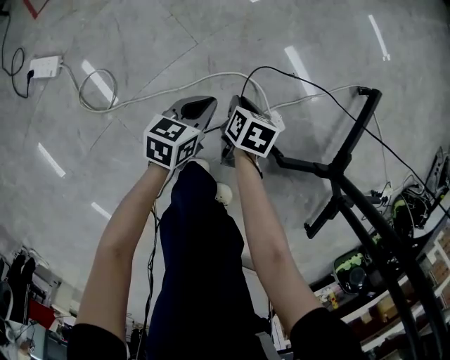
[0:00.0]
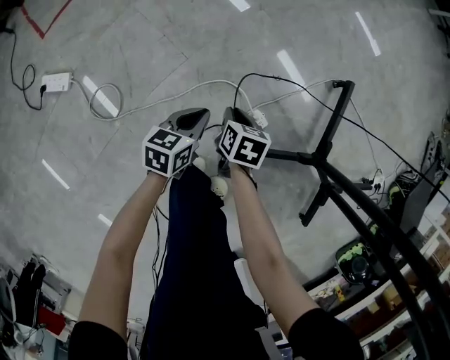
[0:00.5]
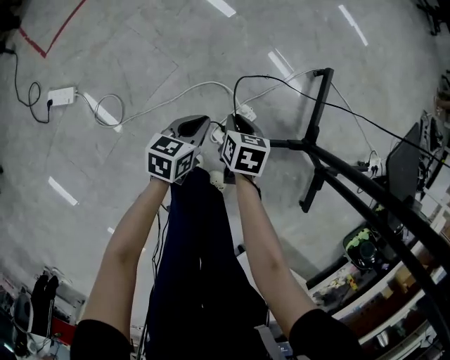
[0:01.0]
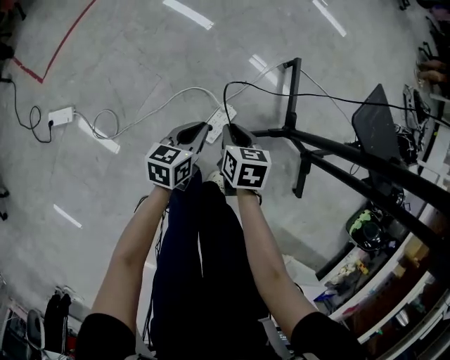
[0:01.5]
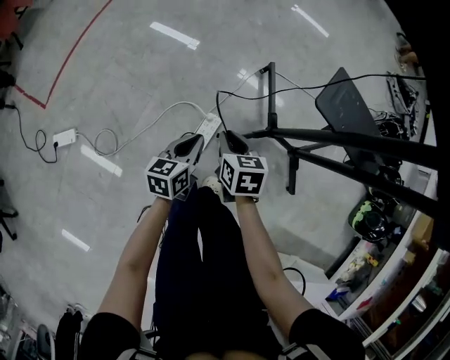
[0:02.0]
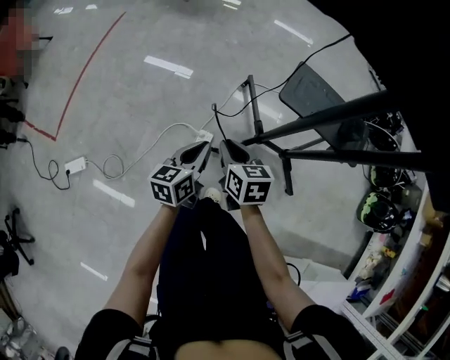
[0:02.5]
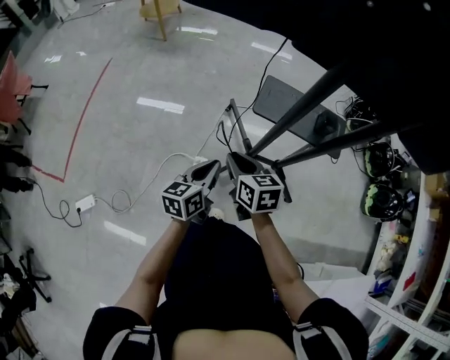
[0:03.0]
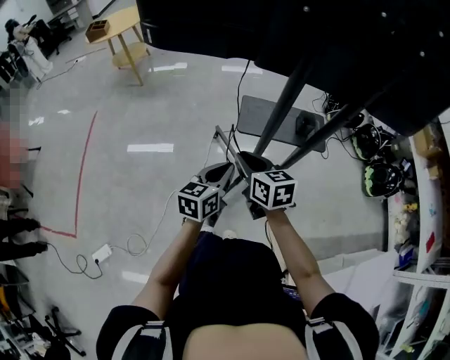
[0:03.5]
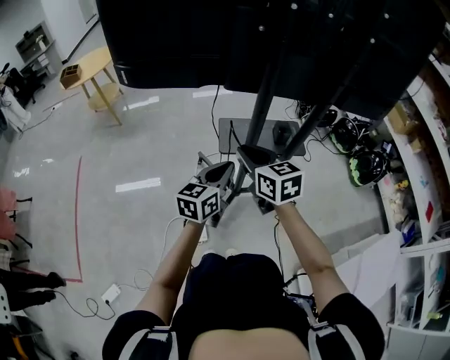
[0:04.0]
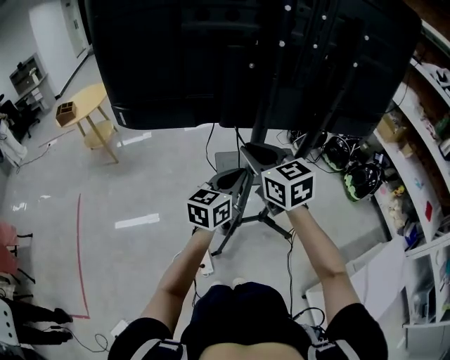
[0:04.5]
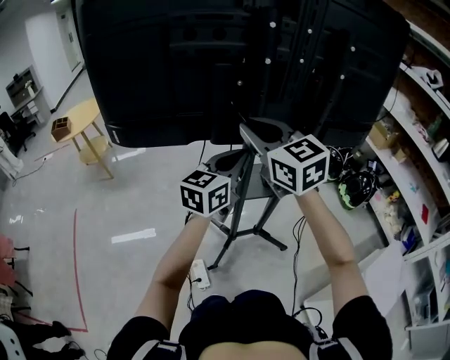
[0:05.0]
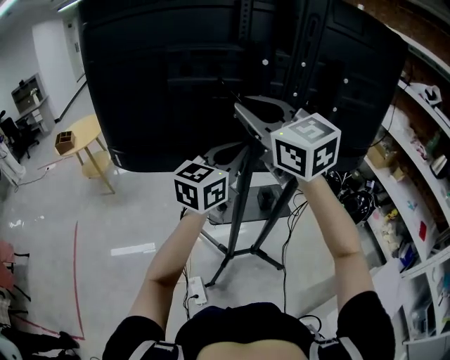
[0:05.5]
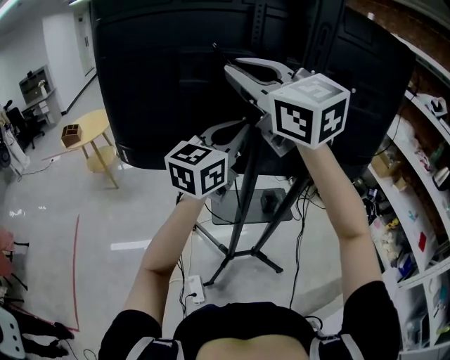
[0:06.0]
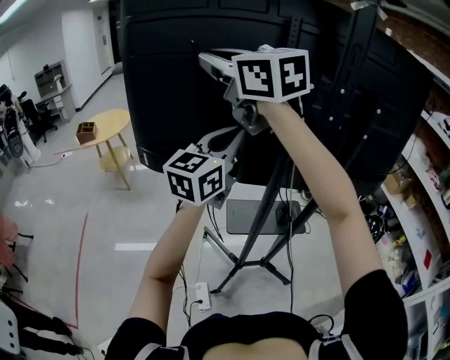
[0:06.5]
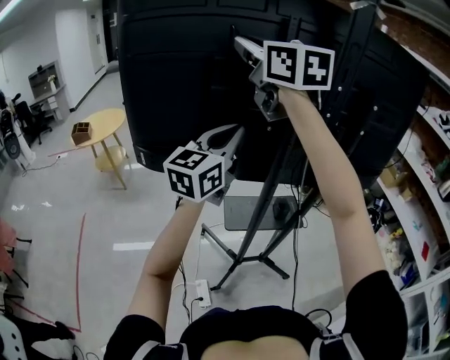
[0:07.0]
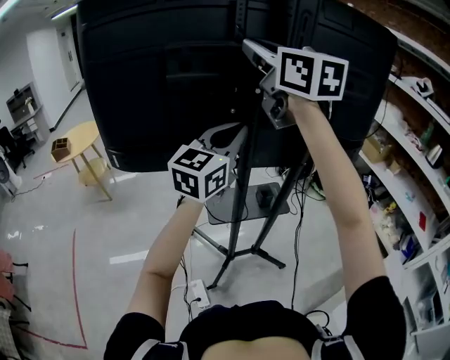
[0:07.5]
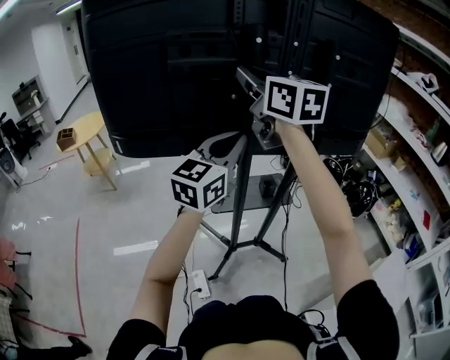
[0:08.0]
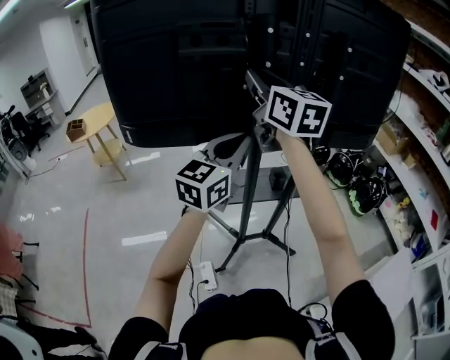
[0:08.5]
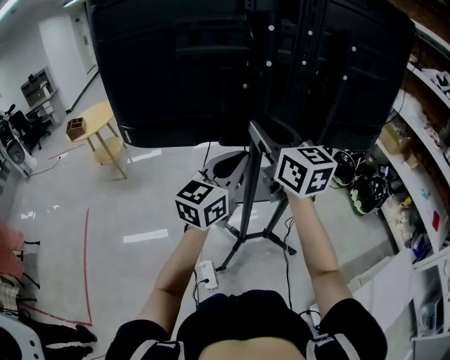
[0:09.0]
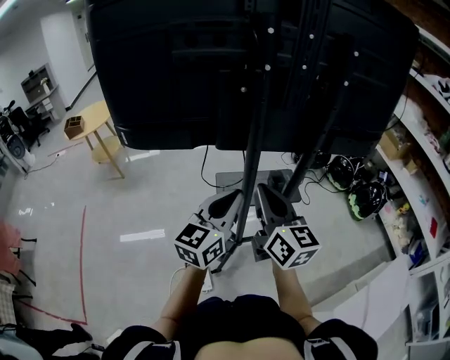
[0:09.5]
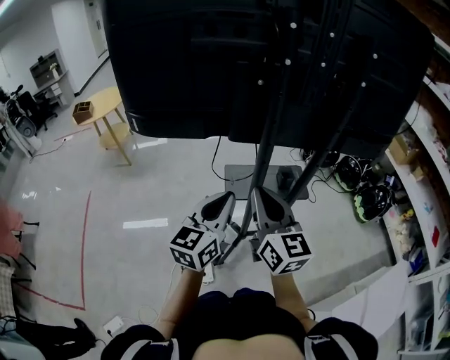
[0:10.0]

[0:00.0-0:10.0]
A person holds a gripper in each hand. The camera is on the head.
0:00.0 to 0:02.0: The left gripper shifts some 40 cm upward and to the right; the right gripper shifts roughly 50 cm upward.
0:02.0 to 0:04.0: The two grippers go approximately 40 cm upward. The right gripper changes its angle by approximately 40 degrees. The left gripper changes its angle by approximately 50 degrees.
0:04.0 to 0:06.0: Both grippers move upward, approximately 40 cm. The right gripper rotates about 40 degrees. Meanwhile the left gripper rotates about 30 degrees.
0:06.0 to 0:08.0: The left gripper moves downward and backward, approximately 10 cm, and moves roughly 10 cm to the left and comes back; the right gripper goes about 10 cm downward, moves approximately 15 cm to the left and comes back, and changes its angle by about 30 degrees.
0:08.0 to 0:10.0: The right gripper moves downward and backward, some 30 cm, and opens, then closes once more, while the left gripper moves downward, backward and to the left, some 20 cm.

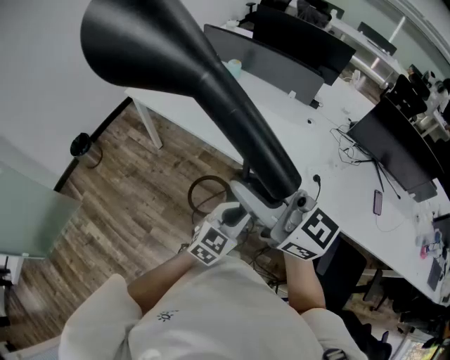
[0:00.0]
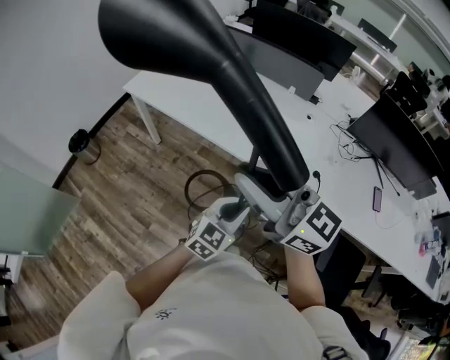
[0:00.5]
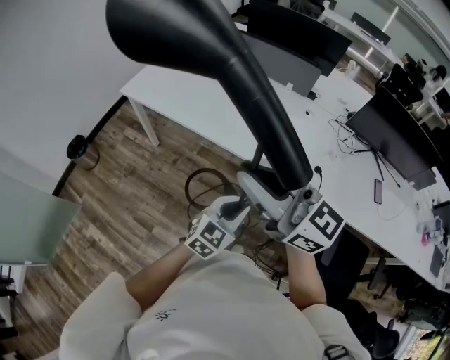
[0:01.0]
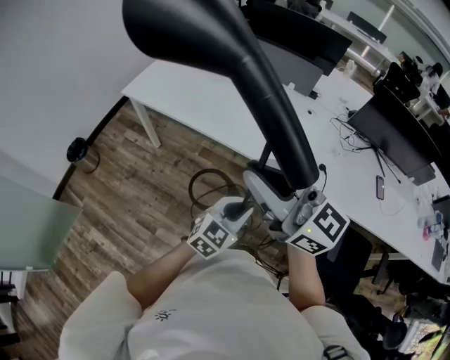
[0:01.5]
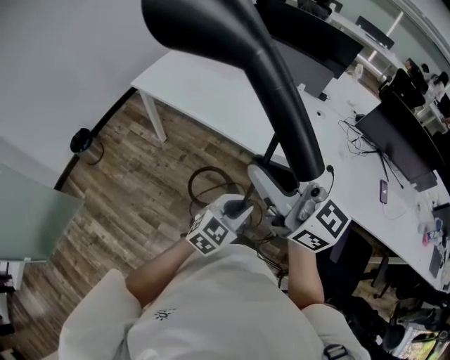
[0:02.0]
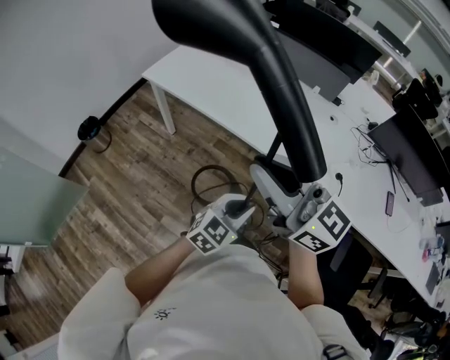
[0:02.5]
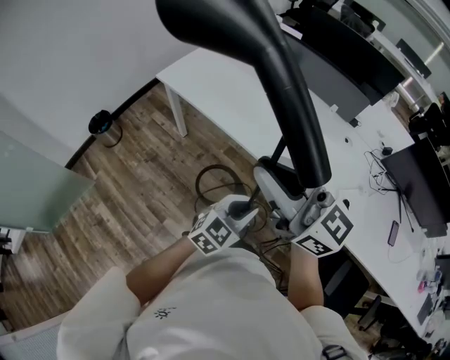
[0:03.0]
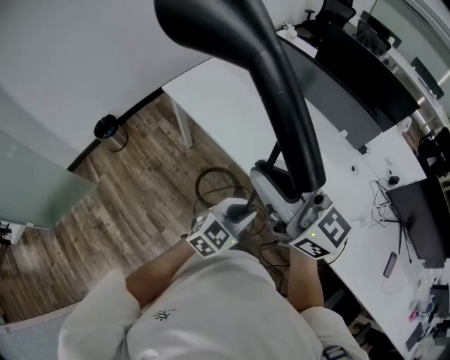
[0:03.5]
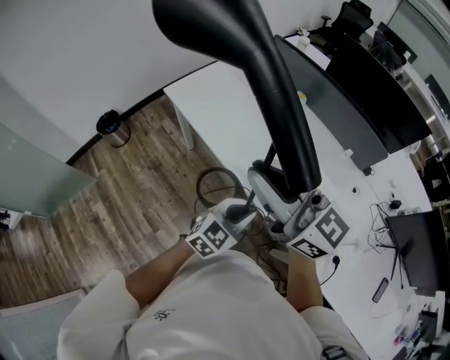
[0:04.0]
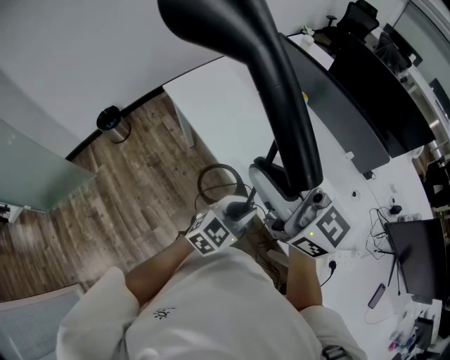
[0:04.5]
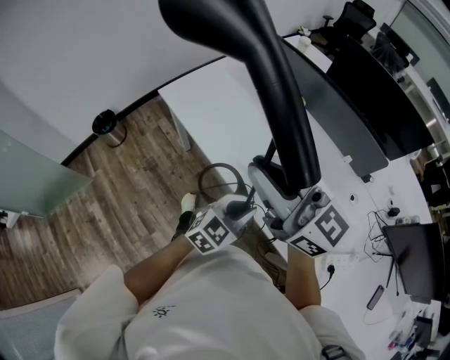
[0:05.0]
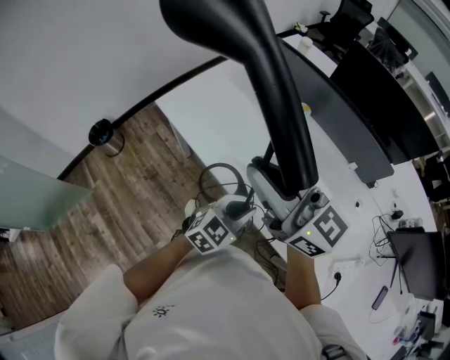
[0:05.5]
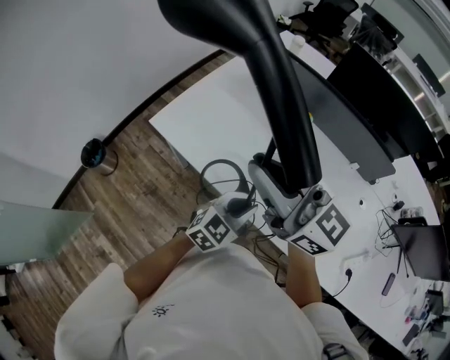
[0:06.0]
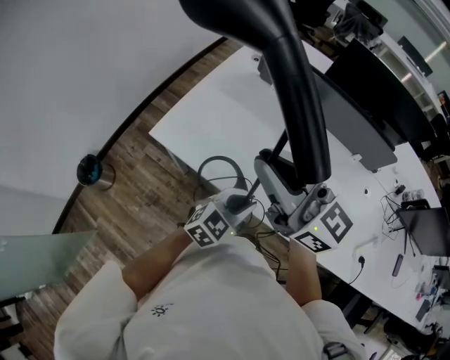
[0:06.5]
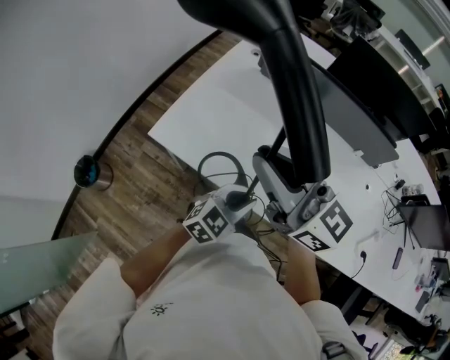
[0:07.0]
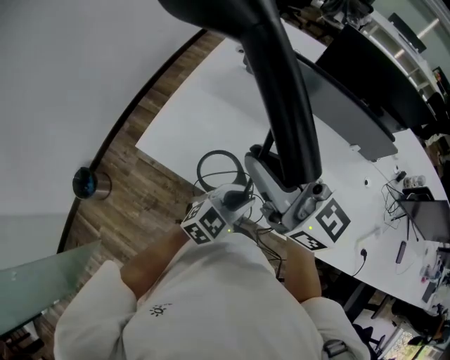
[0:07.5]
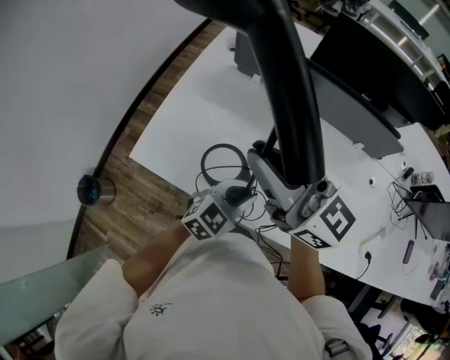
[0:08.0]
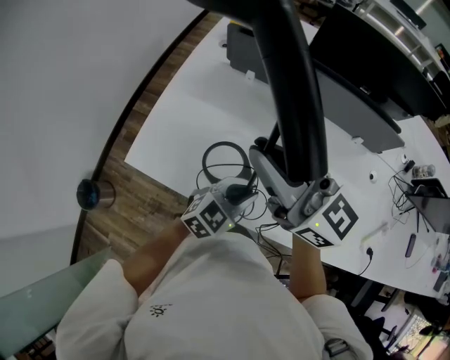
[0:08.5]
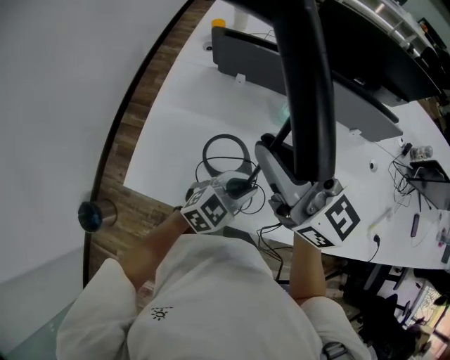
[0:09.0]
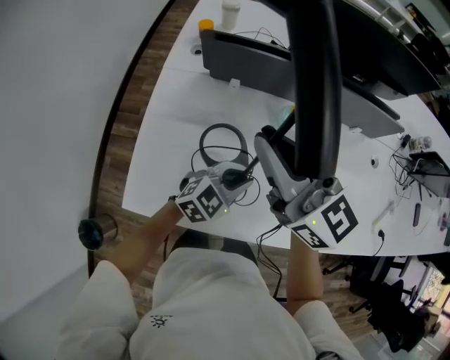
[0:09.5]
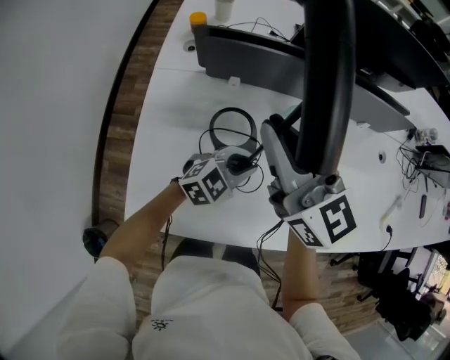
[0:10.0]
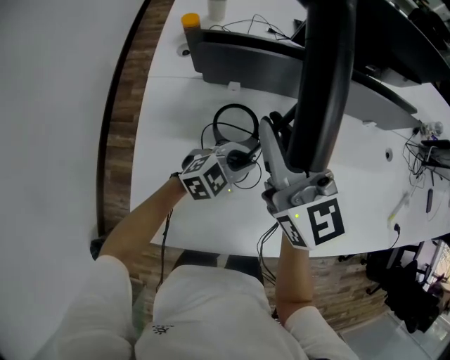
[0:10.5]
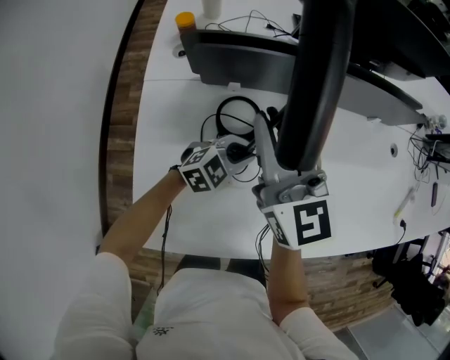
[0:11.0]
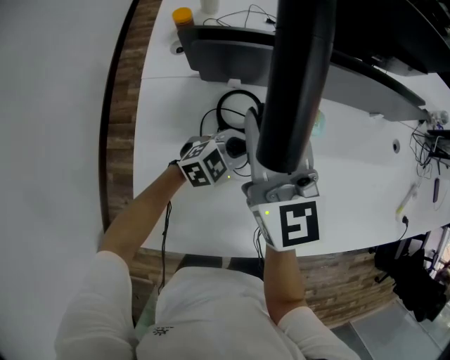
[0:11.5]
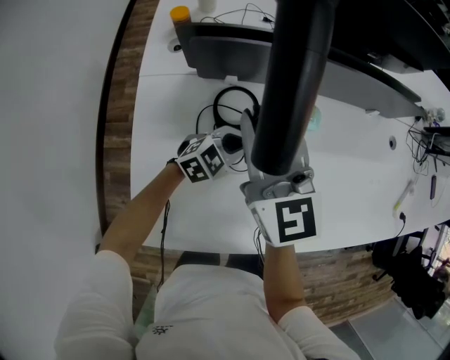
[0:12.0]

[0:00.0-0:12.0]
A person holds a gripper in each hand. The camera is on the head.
0:00.0 to 0:02.0: The two grippers go about 10 cm to the left.
0:02.0 to 0:04.0: Both grippers travel together forward, about 30 cm.
0:04.0 to 0:06.0: The two grippers go roughly 20 cm forward and to the left.
0:06.0 to 0:08.0: The grippers both shift forward by some 15 cm.
0:08.0 to 0:10.0: The right gripper moves roughly 25 cm, and swivels approximately 30 degrees. Meanwhile the left gripper changes place by about 20 cm, and turns by approximately 30 degrees.
0:10.0 to 0:12.0: The left gripper heads downward, to the left and forward, covering some 10 cm; the right gripper travels downward and to the left by approximately 10 cm.

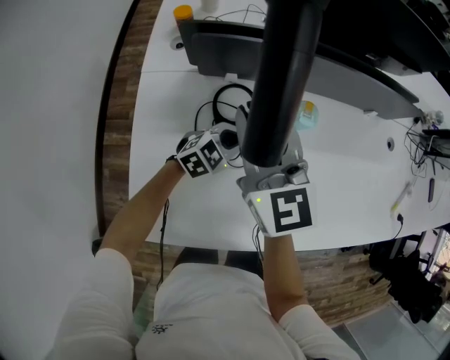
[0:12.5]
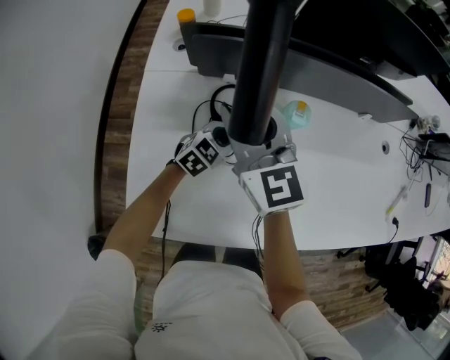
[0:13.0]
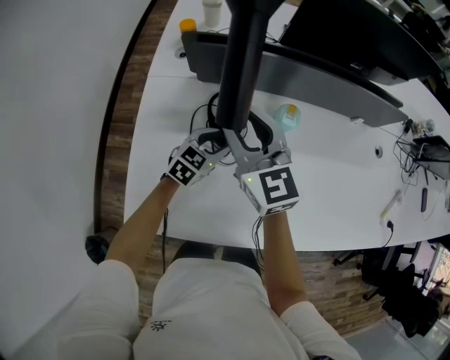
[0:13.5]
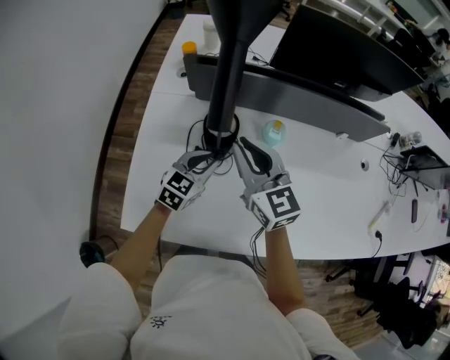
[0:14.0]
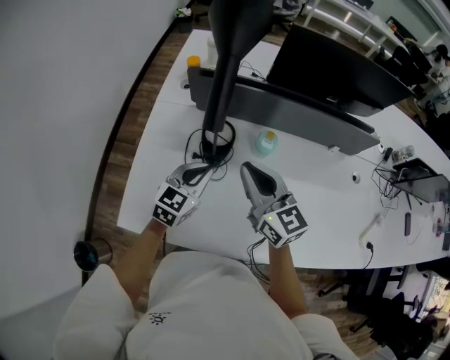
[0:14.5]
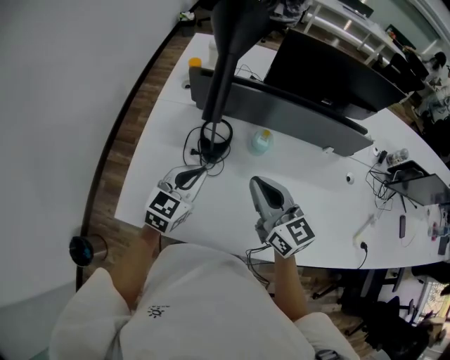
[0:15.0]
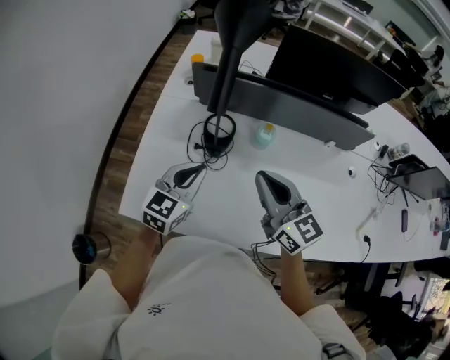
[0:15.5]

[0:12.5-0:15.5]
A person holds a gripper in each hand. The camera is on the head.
0:12.5 to 0:14.0: The right gripper goes about 10 cm to the right and backward, and opens, then closes once more; the left gripper moves upward and backward, about 10 cm, turns by some 30 degrees, and opens, then closes once more.
0:14.0 to 0:15.5: The right gripper goes about 15 cm backward, to the right and upward, while the left gripper is displaced upward and backward by roughly 15 cm.

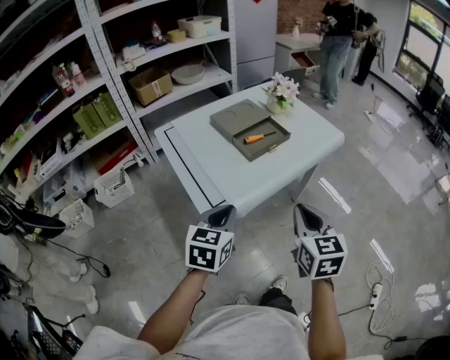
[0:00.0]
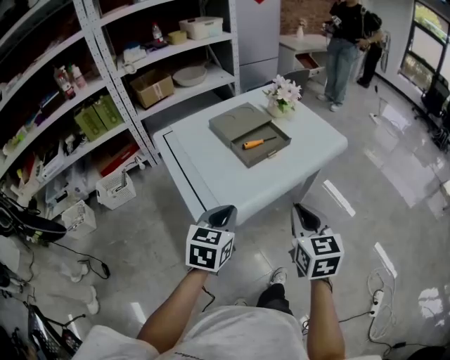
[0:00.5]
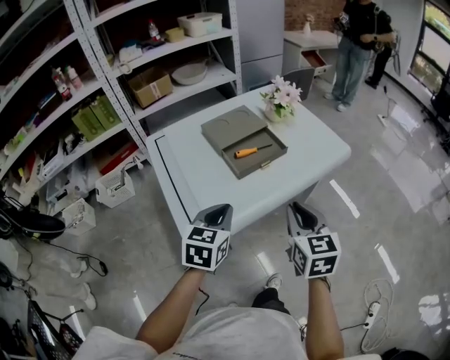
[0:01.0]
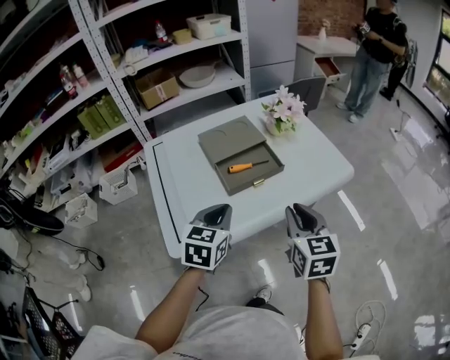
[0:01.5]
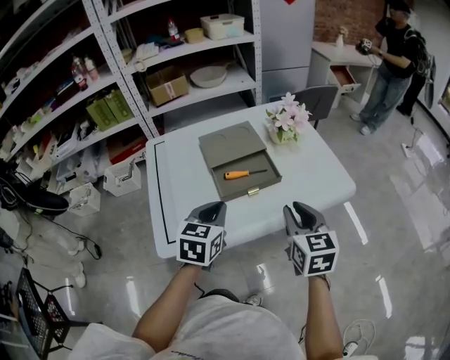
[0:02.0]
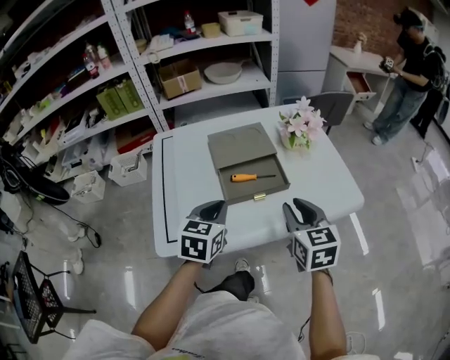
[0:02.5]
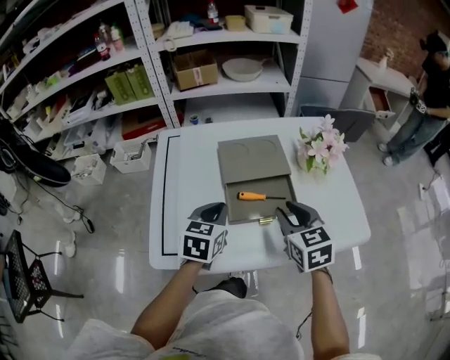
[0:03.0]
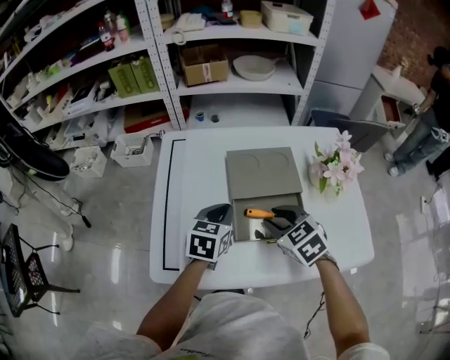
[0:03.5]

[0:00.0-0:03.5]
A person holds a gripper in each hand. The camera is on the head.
0:00.0 to 0:02.0: Both grippers move forward and to the right, some 25 cm. The right gripper opens.
0:02.0 to 0:03.5: The right gripper moves forward, to the left and downward, approximately 25 cm, and changes its angle by about 50 degrees; the left gripper moves forward and downward, roughly 20 cm.
